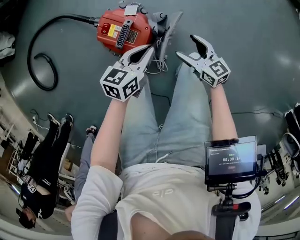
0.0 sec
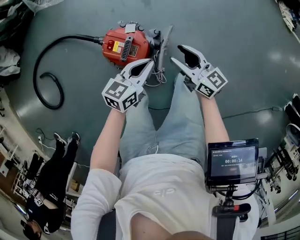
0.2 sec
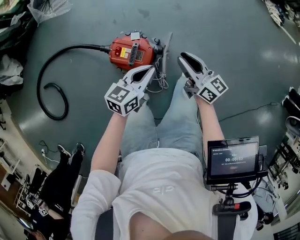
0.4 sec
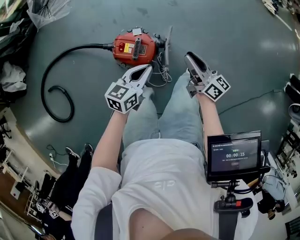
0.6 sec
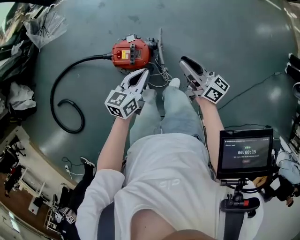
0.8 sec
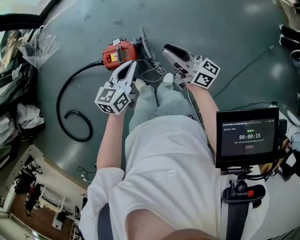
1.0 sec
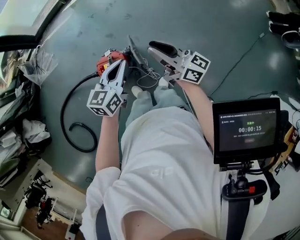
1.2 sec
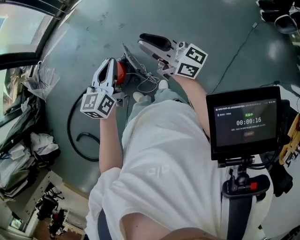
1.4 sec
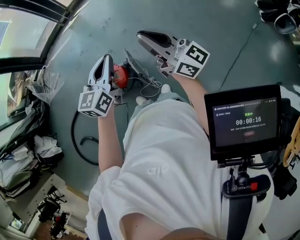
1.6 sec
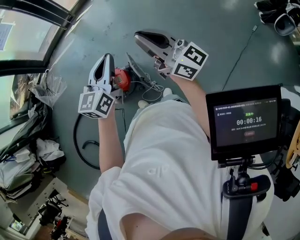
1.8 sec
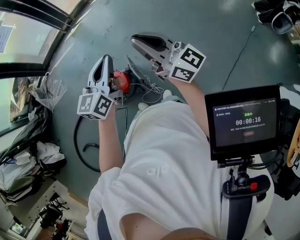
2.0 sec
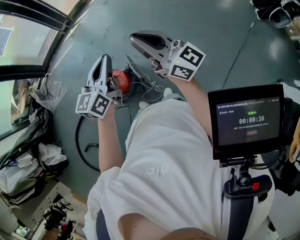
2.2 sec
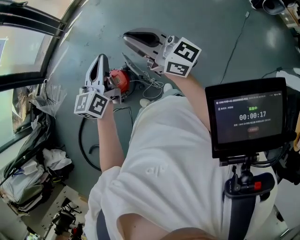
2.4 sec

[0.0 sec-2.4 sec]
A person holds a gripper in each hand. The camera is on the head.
0.0 sec to 1.2 sec: The left gripper goes about 30 cm backward, and rotates about 30 degrees. The right gripper moves backward and to the left, about 25 cm, rolls clockwise, seen from behind, by roughly 40 degrees, and closes up.
1.2 sec to 2.4 sec: The two grippers go approximately 10 cm forward. The right gripper turns by approximately 20 degrees.

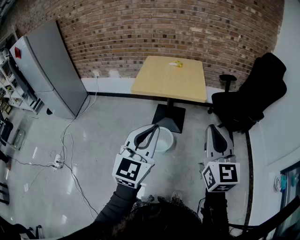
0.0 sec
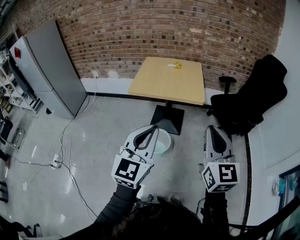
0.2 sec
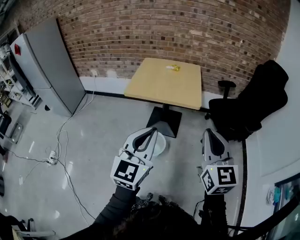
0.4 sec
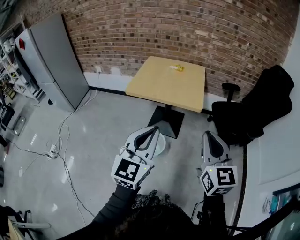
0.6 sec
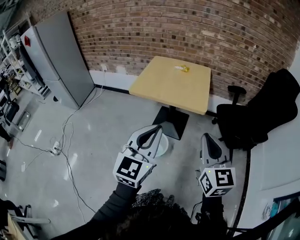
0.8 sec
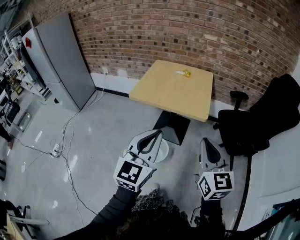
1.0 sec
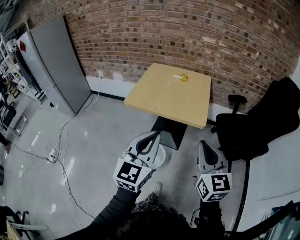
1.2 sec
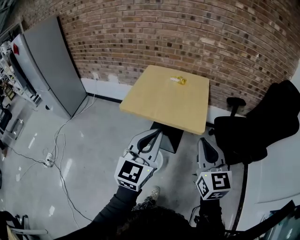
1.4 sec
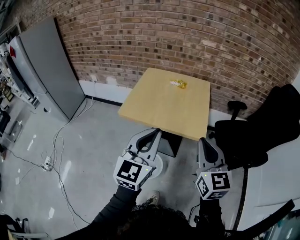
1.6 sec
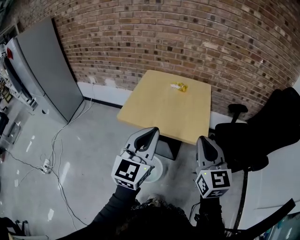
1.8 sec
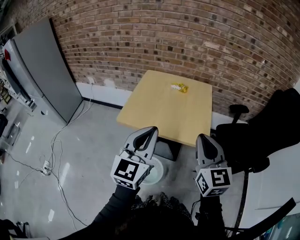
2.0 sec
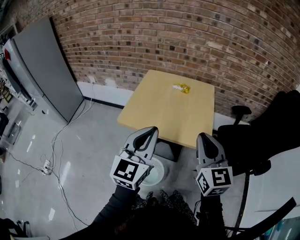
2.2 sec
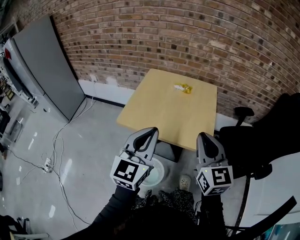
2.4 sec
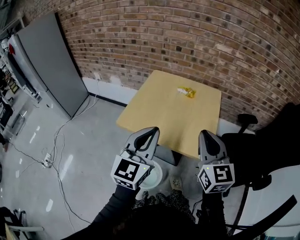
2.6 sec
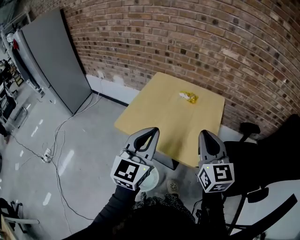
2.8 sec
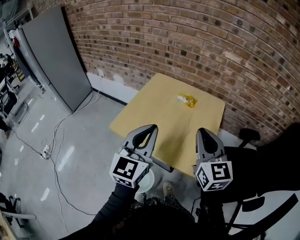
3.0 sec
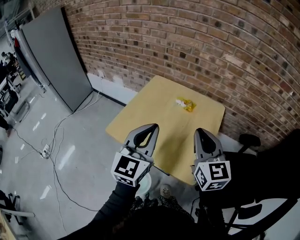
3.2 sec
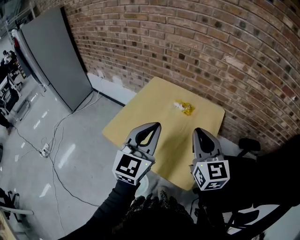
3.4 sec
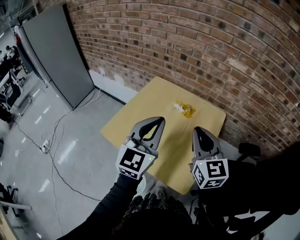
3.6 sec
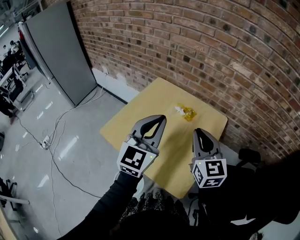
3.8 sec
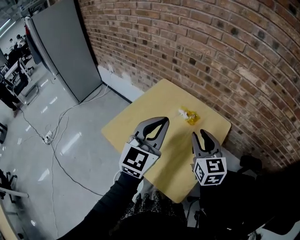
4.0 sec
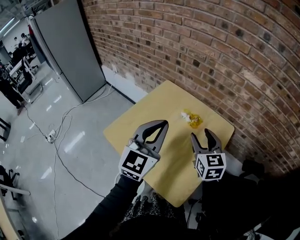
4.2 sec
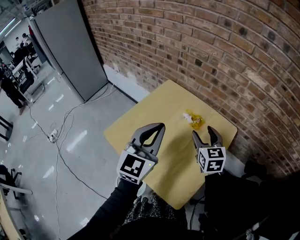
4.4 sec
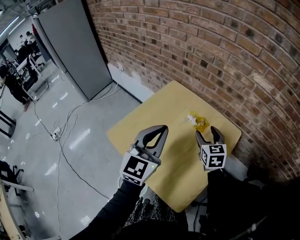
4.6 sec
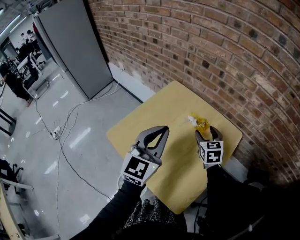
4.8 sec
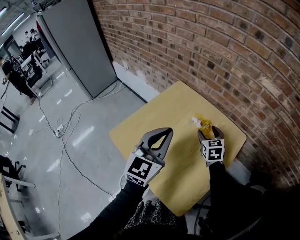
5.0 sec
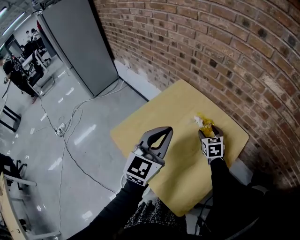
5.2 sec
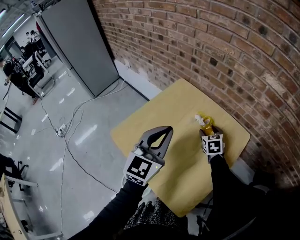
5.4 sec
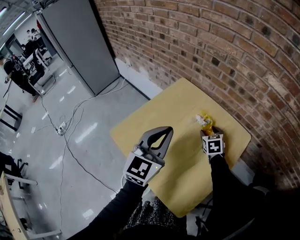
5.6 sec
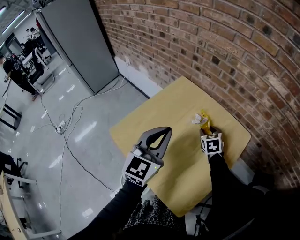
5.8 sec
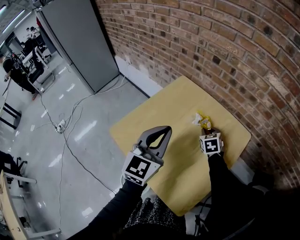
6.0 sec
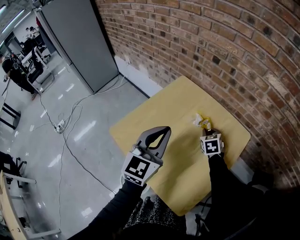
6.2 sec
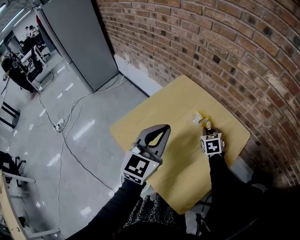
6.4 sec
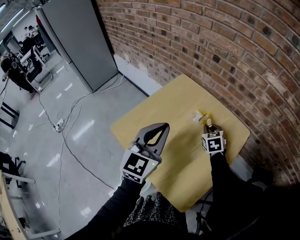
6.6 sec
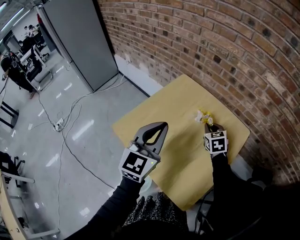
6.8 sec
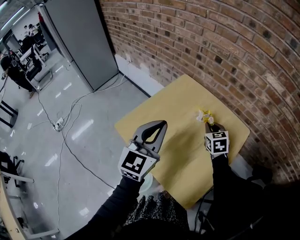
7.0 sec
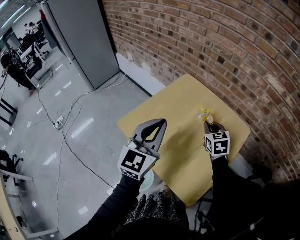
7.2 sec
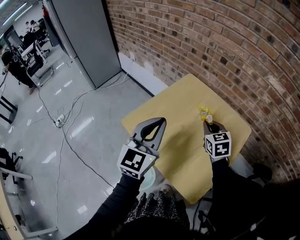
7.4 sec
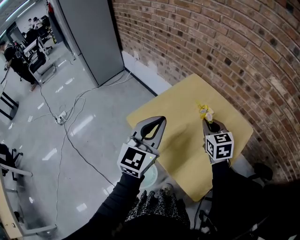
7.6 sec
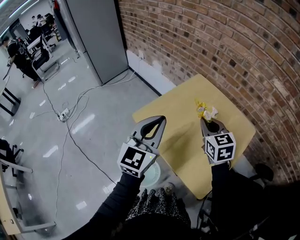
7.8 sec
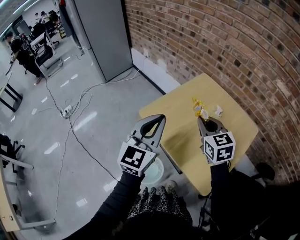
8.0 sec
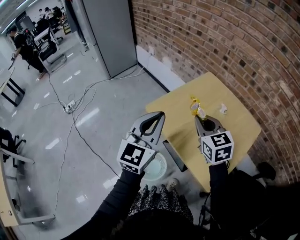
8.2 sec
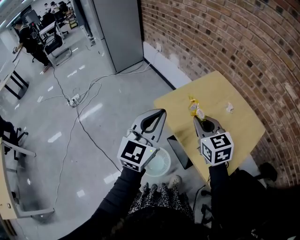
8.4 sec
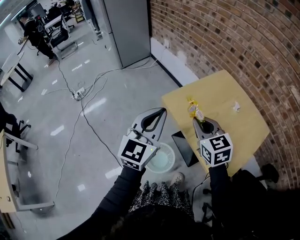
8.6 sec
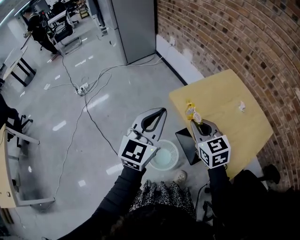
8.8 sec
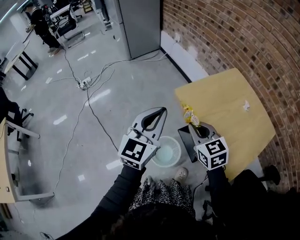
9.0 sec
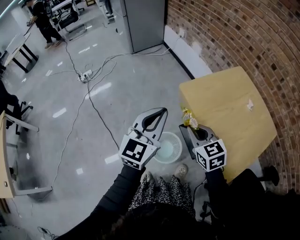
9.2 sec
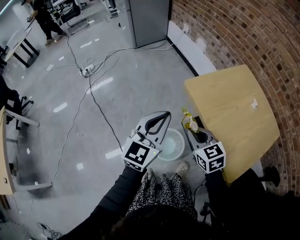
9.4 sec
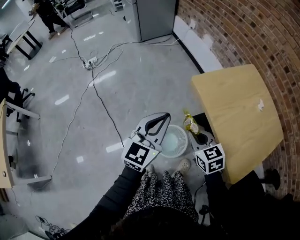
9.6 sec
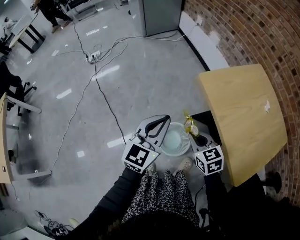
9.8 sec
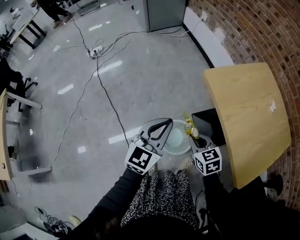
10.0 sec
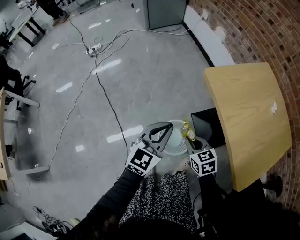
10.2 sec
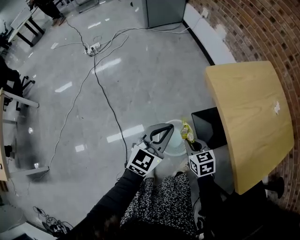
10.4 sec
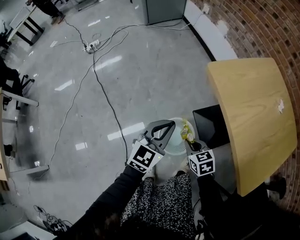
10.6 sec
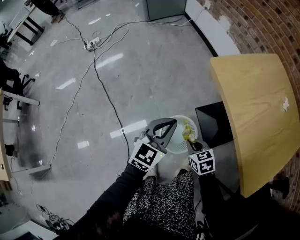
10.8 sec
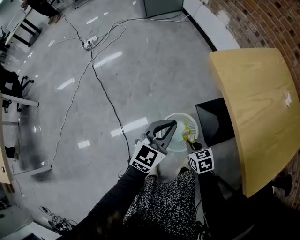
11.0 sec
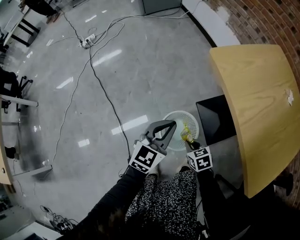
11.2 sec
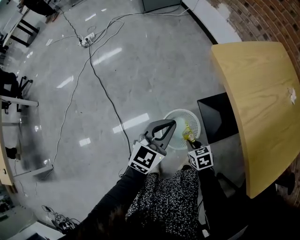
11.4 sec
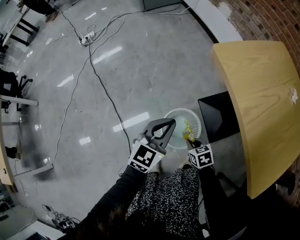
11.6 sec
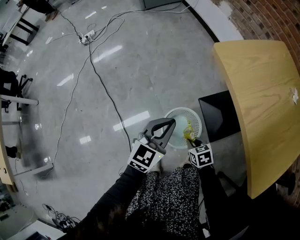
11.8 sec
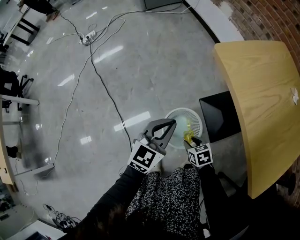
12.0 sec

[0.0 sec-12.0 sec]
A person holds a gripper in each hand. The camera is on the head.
0.0 sec to 1.6 sec: The grippers both shift forward by roughly 25 cm.
1.6 sec to 3.0 sec: The two grippers go approximately 25 cm forward.
3.0 sec to 4.4 sec: The left gripper heads forward and to the right, covering approximately 15 cm, while the right gripper moves forward and downward, approximately 30 cm, changes its angle by approximately 20 degrees, and opens.
4.4 sec to 6.0 sec: The left gripper heads downward, covering approximately 5 cm. Meanwhile the right gripper is displaced downward and forward by roughly 20 cm, swivels approximately 20 degrees, and closes.
6.0 sec to 7.6 sec: The right gripper is displaced upward, to the left and backward by about 25 cm, while the left gripper goes about 15 cm to the left and backward.
7.6 sec to 9.0 sec: The grippers both shift to the left and backward by approximately 30 cm. The right gripper swivels roughly 30 degrees.
9.0 sec to 10.4 sec: The two grippers go approximately 25 cm downward. The right gripper rotates about 20 degrees.
10.4 sec to 12.0 sec: The left gripper heads downward, covering about 10 cm, while the right gripper heads downward, covering roughly 20 cm, and opens its fingers.

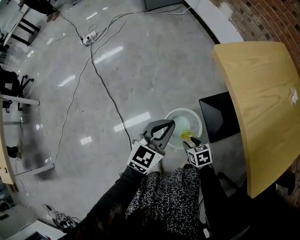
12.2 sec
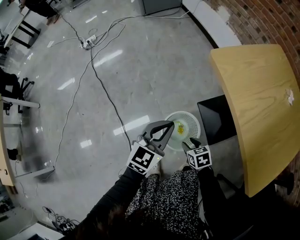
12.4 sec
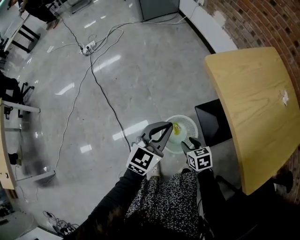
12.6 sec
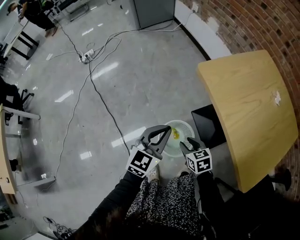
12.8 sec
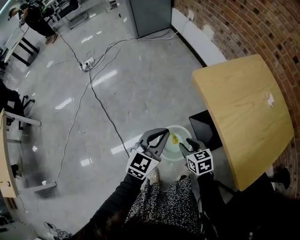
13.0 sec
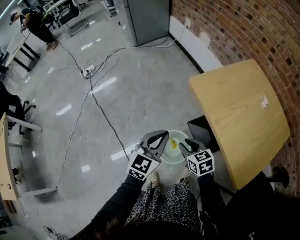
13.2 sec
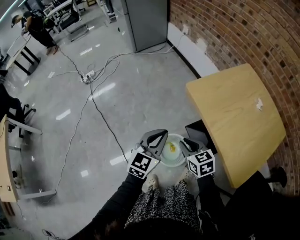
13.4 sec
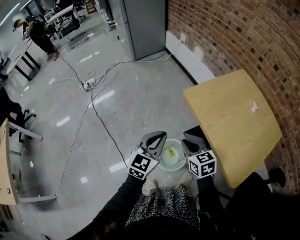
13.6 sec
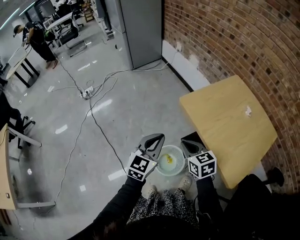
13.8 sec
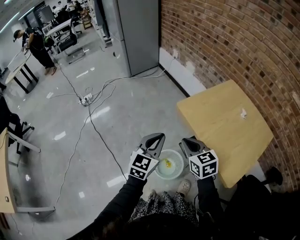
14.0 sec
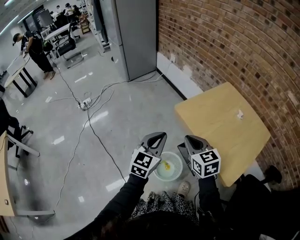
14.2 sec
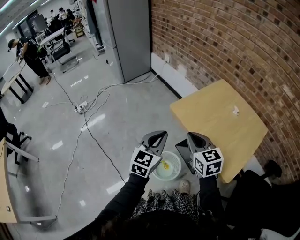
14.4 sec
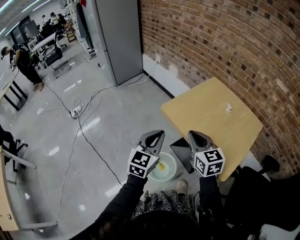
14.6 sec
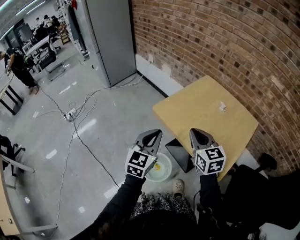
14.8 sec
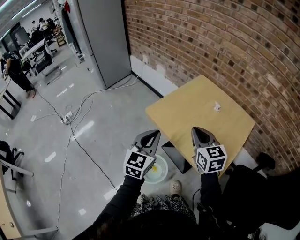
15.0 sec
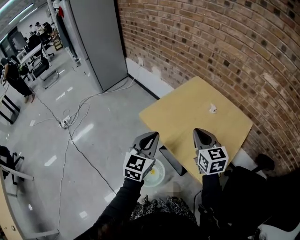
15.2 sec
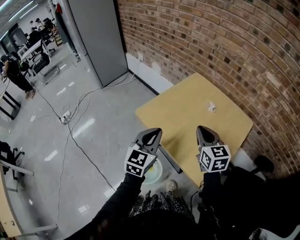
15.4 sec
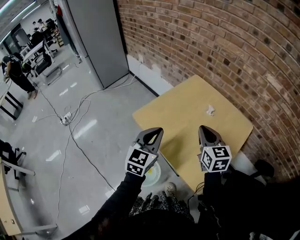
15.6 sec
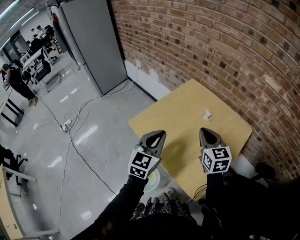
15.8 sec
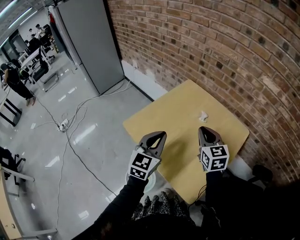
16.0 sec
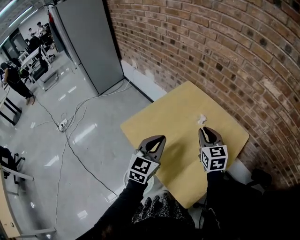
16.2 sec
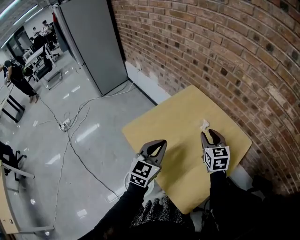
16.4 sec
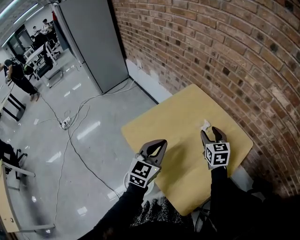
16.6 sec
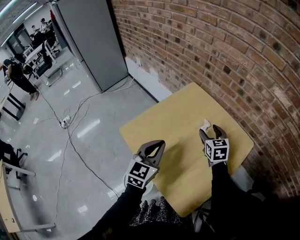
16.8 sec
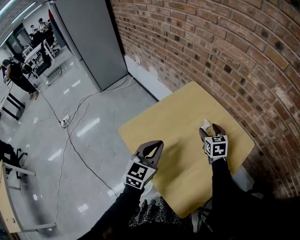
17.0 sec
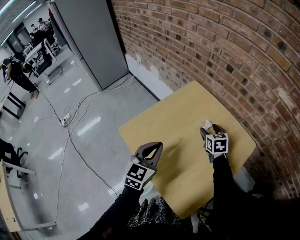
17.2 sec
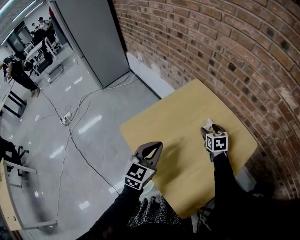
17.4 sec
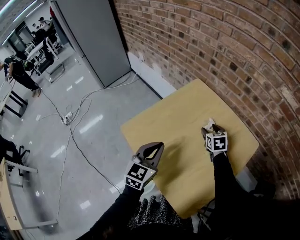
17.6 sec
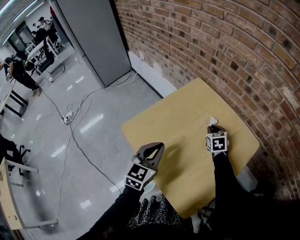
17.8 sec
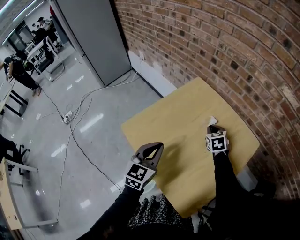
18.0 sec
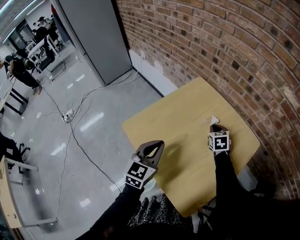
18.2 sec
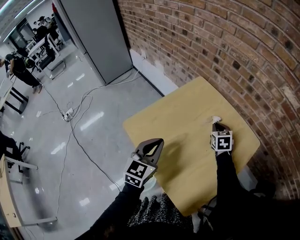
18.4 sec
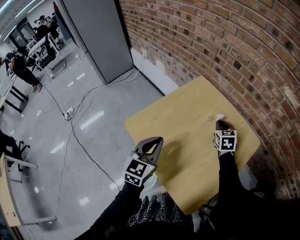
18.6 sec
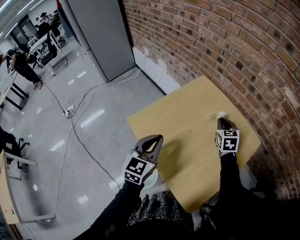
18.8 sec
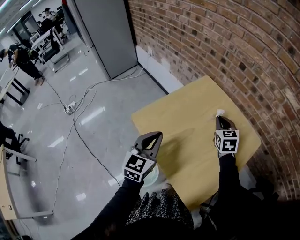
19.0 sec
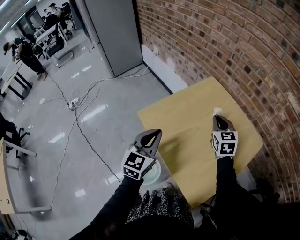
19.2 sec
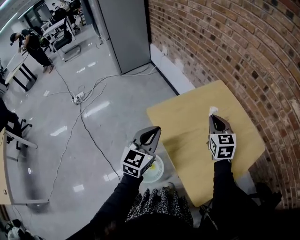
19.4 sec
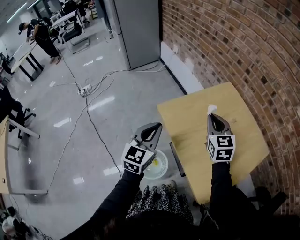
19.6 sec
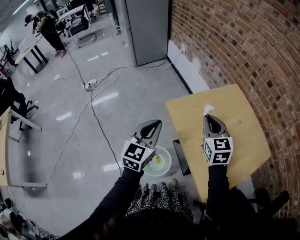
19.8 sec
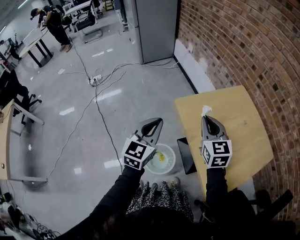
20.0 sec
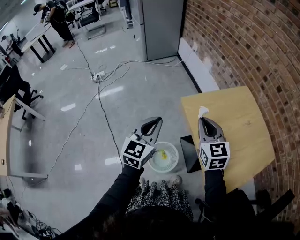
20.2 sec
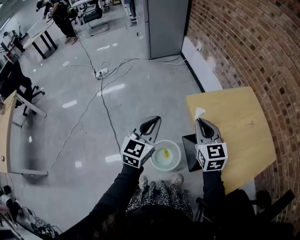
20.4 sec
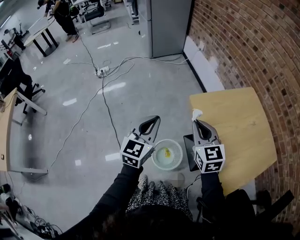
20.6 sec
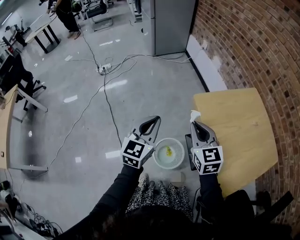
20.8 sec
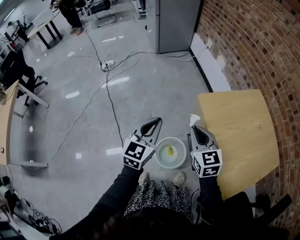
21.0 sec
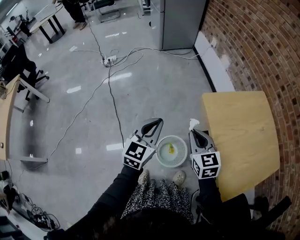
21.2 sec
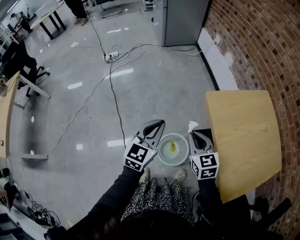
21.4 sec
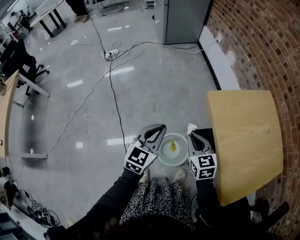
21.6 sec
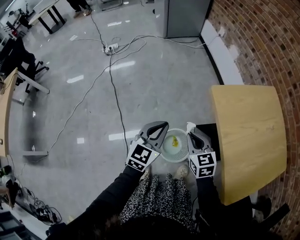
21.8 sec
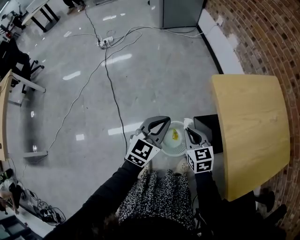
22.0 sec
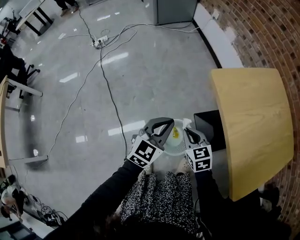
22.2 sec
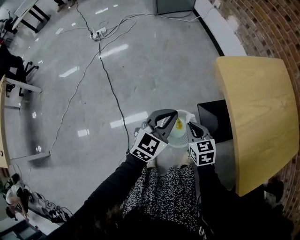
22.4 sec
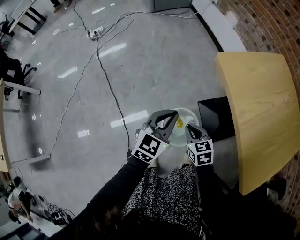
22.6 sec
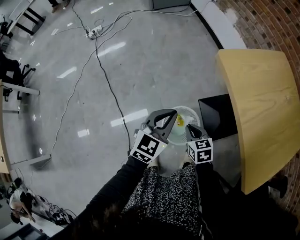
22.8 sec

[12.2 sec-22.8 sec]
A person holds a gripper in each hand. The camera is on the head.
12.2 sec to 13.8 sec: The left gripper goes about 20 cm upward. Meanwhile the right gripper heads upward, covering roughly 35 cm, swivels roughly 30 degrees, and closes its fingers.
13.8 sec to 15.2 sec: The right gripper is displaced to the right and upward by about 25 cm, and swivels roughly 30 degrees, while the left gripper travels to the right and upward by roughly 15 cm.
15.2 sec to 16.8 sec: The right gripper is displaced forward, to the right and downward by approximately 30 cm, and opens up, while the left gripper is displaced forward and to the right by roughly 20 cm.
16.8 sec to 18.2 sec: The right gripper is displaced downward by approximately 10 cm, and closes its fingers.
18.2 sec to 19.8 sec: The left gripper travels to the left and backward by roughly 20 cm, and swivels approximately 20 degrees. Meanwhile the right gripper moves to the left, upward and backward, some 35 cm, and turns by approximately 30 degrees.
19.8 sec to 21.2 sec: The left gripper goes some 15 cm to the left; the right gripper heads to the left and downward, covering approximately 25 cm.
21.2 sec to 22.8 sec: The left gripper goes approximately 20 cm downward. The right gripper is displaced downward by roughly 30 cm, and turns by some 30 degrees.
